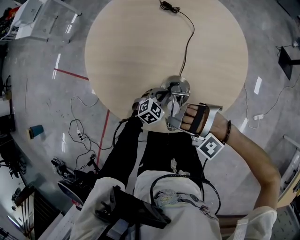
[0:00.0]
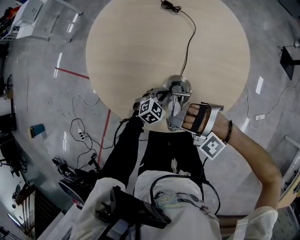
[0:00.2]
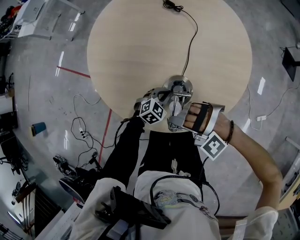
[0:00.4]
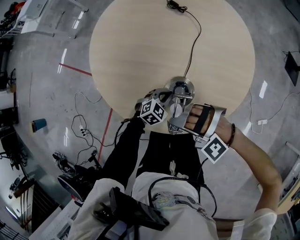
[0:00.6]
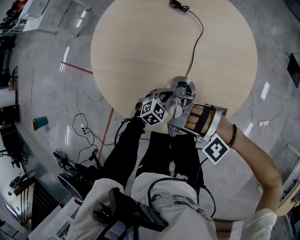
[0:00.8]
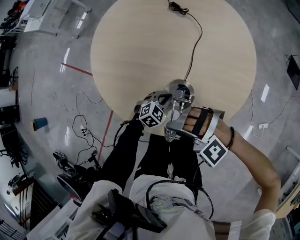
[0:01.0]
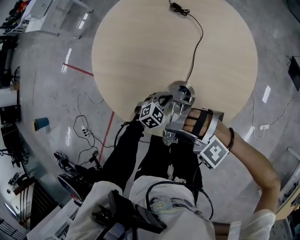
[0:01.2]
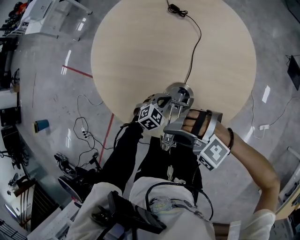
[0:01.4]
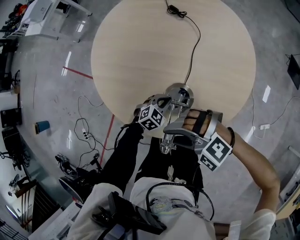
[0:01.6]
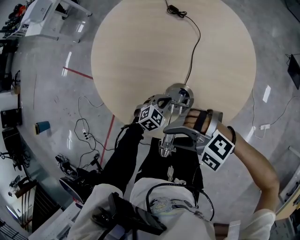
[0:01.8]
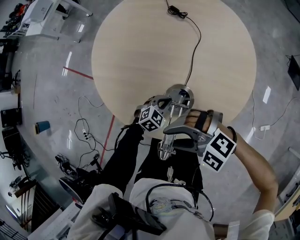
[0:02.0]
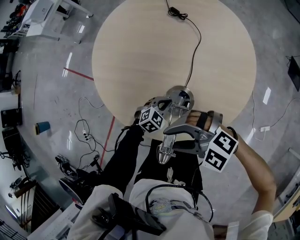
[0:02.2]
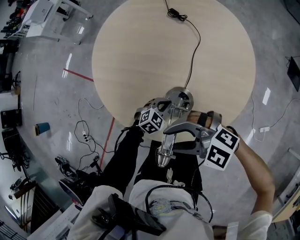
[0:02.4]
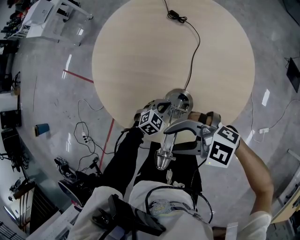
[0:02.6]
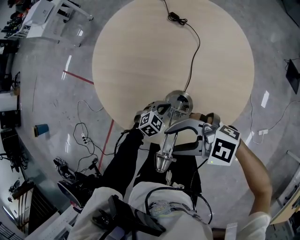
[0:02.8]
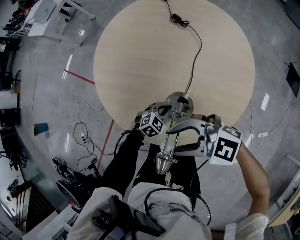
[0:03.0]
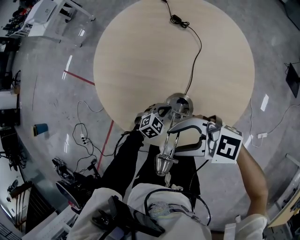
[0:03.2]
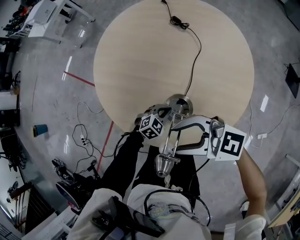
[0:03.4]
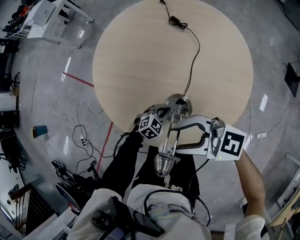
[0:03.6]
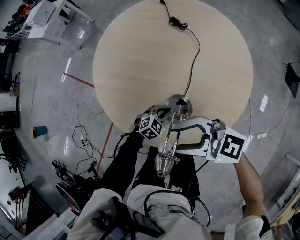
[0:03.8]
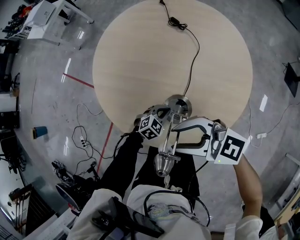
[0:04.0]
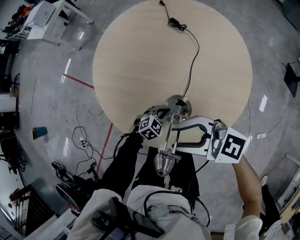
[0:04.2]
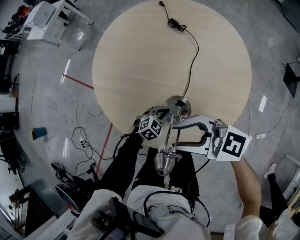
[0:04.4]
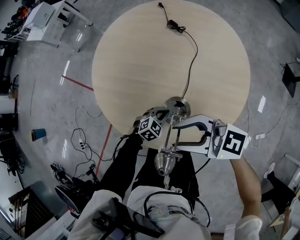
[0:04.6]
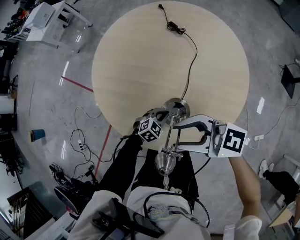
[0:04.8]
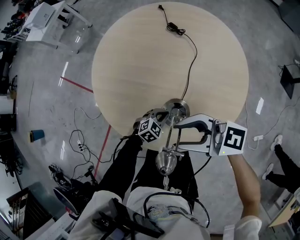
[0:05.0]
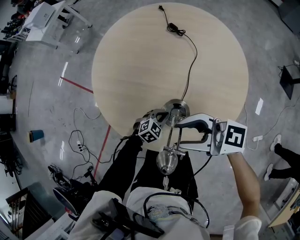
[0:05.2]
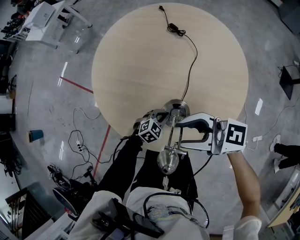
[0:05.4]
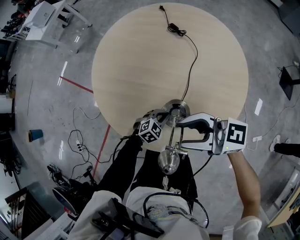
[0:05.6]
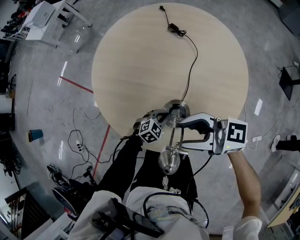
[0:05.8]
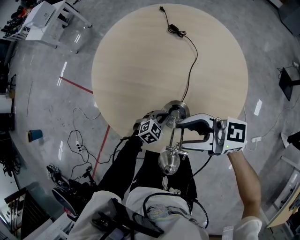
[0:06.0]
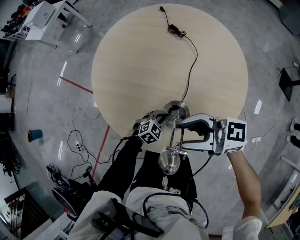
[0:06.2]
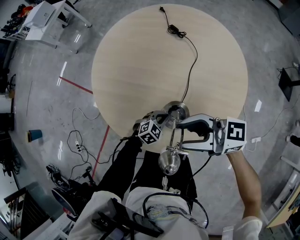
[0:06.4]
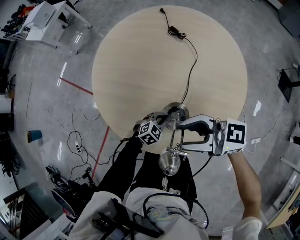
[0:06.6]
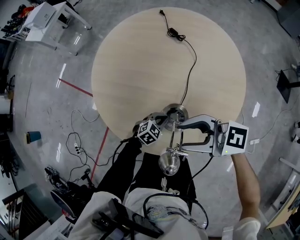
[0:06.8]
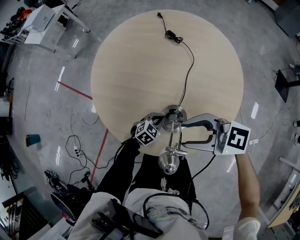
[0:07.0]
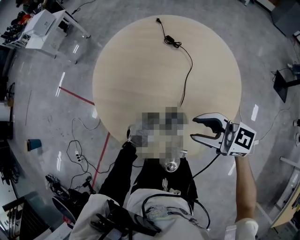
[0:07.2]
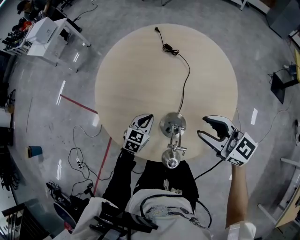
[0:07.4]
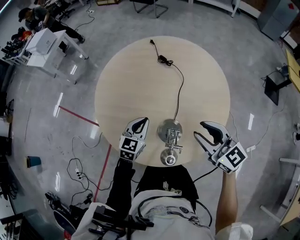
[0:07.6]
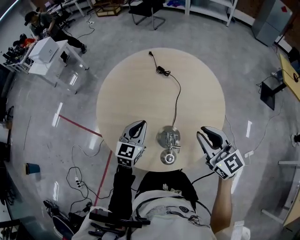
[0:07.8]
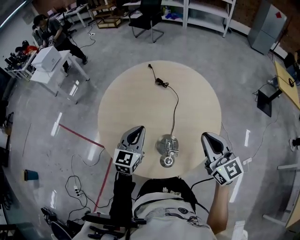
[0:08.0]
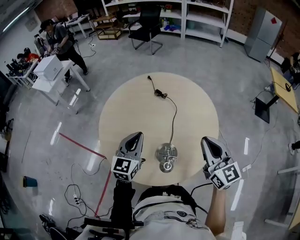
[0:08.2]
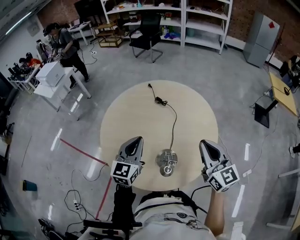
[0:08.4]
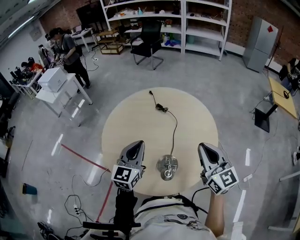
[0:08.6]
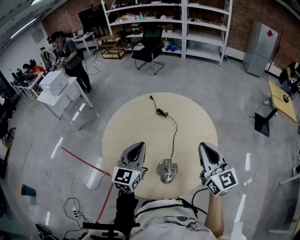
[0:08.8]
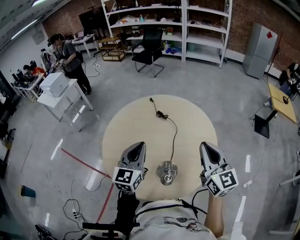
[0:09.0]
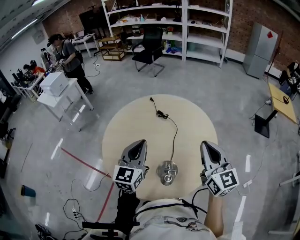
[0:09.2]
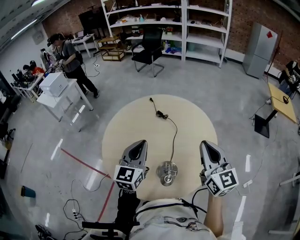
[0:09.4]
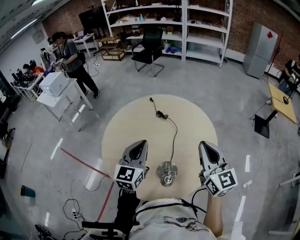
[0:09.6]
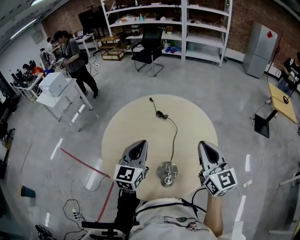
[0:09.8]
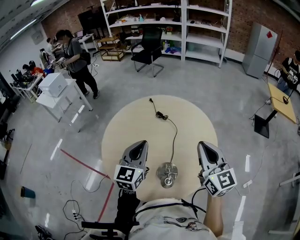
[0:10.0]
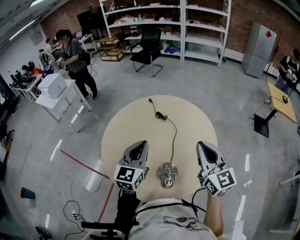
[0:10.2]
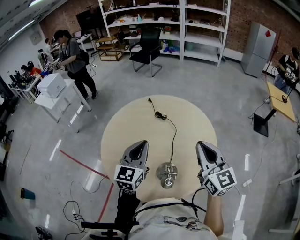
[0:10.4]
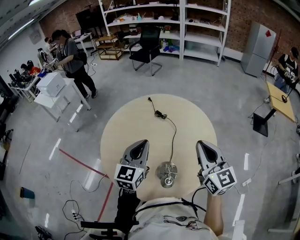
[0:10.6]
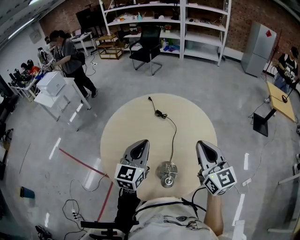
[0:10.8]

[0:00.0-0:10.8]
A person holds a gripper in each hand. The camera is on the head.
0:00.0 to 0:01.6: The right gripper heads upward, covering approximately 5 cm, and swivels some 40 degrees.
0:01.6 to 0:03.0: The right gripper moves upward, some 5 cm, and turns by about 40 degrees.
0:03.0 to 0:04.6: The right gripper swivels some 20 degrees.
0:04.6 to 0:06.2: The grippers make only small movements.
0:06.2 to 0:07.8: The left gripper shifts roughly 30 cm upward, and points its fingers approximately 30 degrees further upward; the right gripper shifts by approximately 10 cm, rotates roughly 60 degrees, and closes.
0:07.8 to 0:09.2: The left gripper heads upward, covering some 20 cm. Meanwhile the right gripper travels upward by about 10 cm, and rotates some 20 degrees.
0:09.2 to 0:10.8: There are only small adjustments of the grippers.

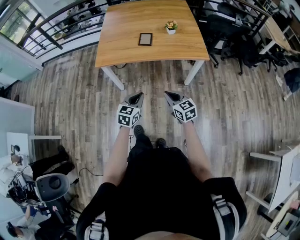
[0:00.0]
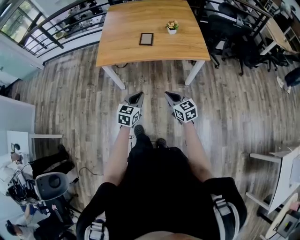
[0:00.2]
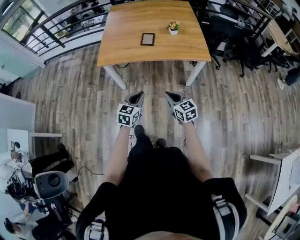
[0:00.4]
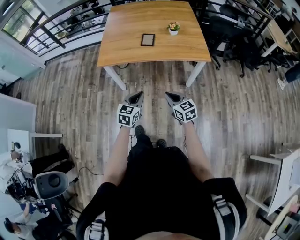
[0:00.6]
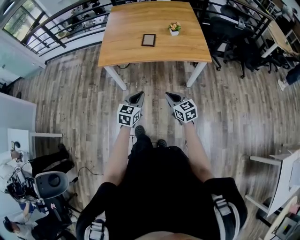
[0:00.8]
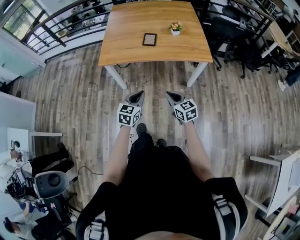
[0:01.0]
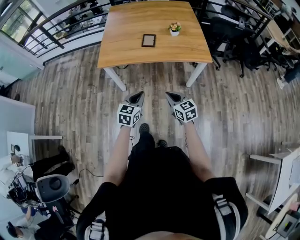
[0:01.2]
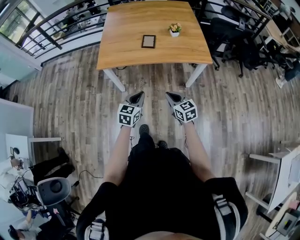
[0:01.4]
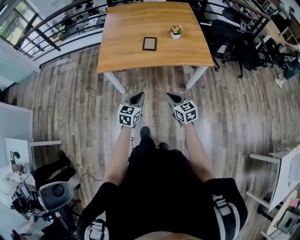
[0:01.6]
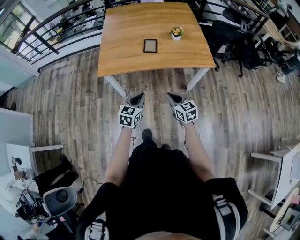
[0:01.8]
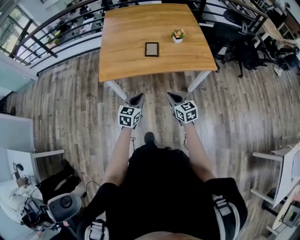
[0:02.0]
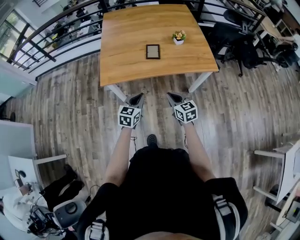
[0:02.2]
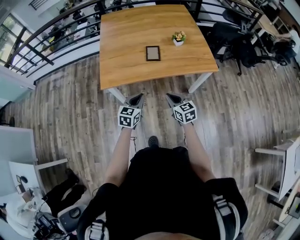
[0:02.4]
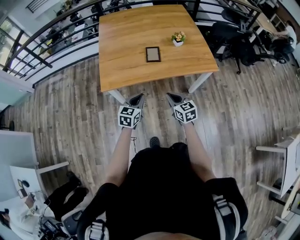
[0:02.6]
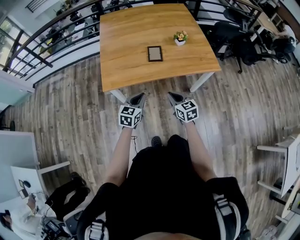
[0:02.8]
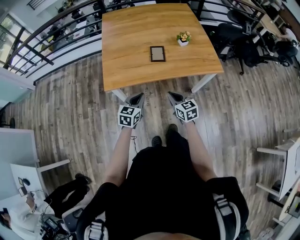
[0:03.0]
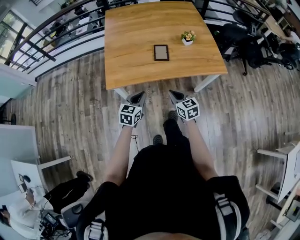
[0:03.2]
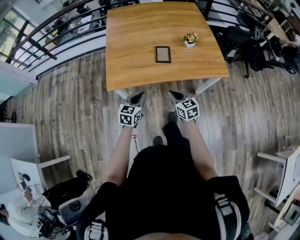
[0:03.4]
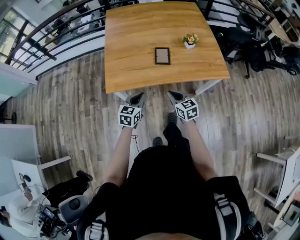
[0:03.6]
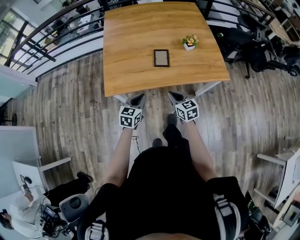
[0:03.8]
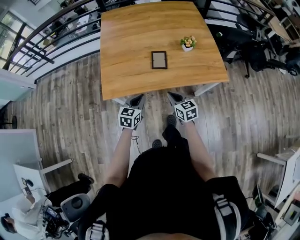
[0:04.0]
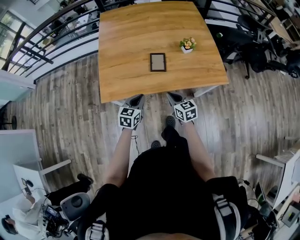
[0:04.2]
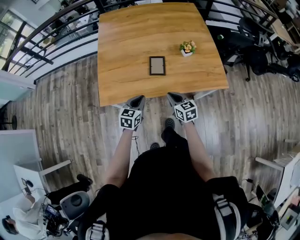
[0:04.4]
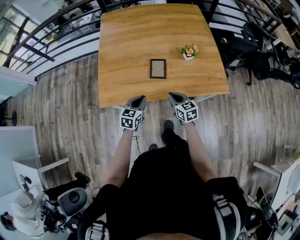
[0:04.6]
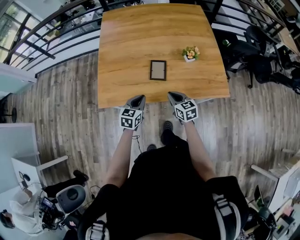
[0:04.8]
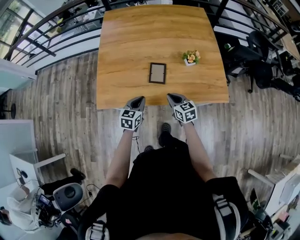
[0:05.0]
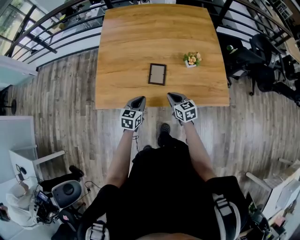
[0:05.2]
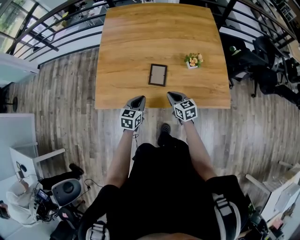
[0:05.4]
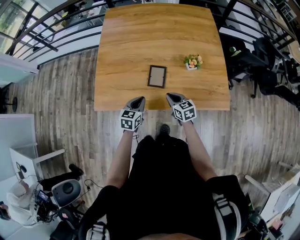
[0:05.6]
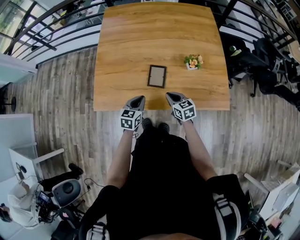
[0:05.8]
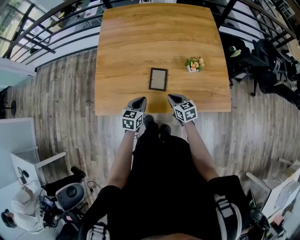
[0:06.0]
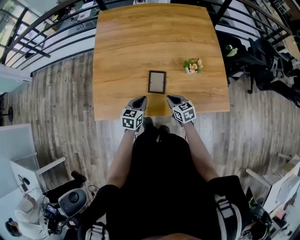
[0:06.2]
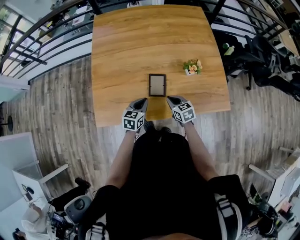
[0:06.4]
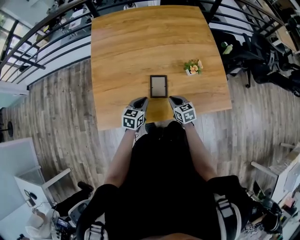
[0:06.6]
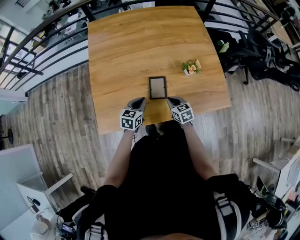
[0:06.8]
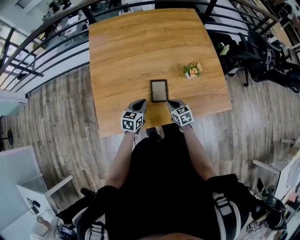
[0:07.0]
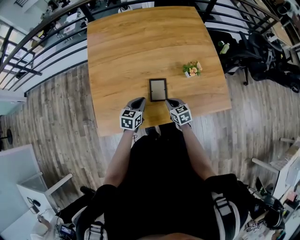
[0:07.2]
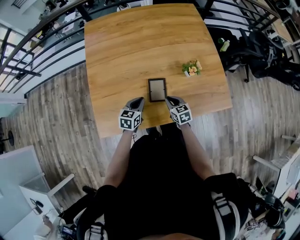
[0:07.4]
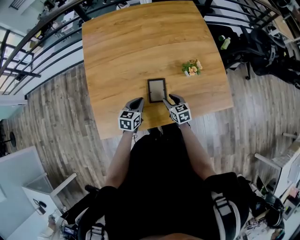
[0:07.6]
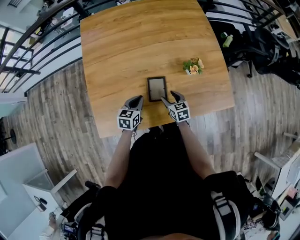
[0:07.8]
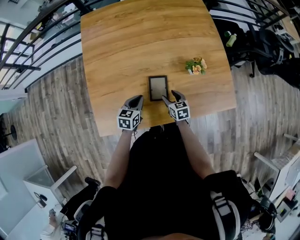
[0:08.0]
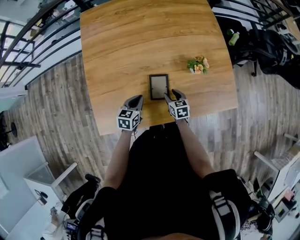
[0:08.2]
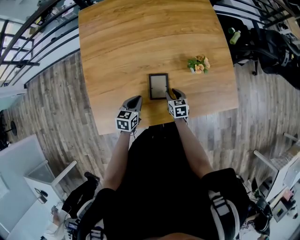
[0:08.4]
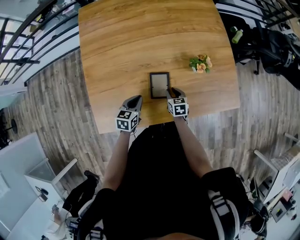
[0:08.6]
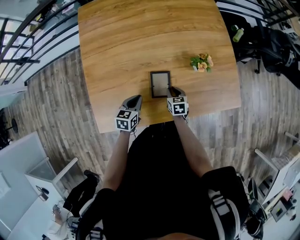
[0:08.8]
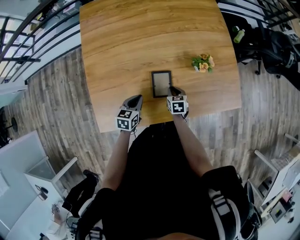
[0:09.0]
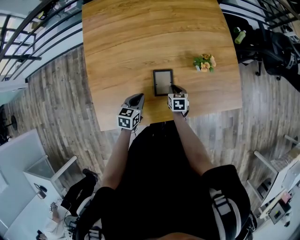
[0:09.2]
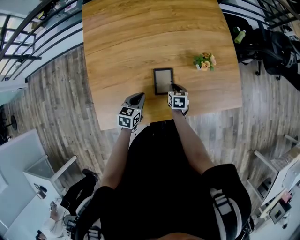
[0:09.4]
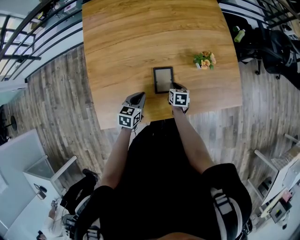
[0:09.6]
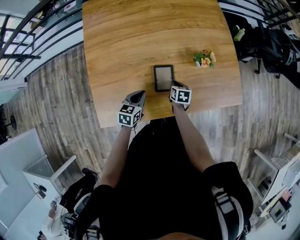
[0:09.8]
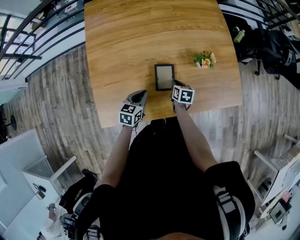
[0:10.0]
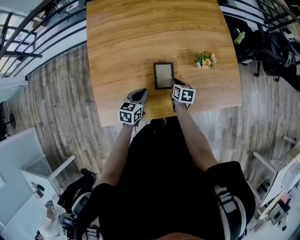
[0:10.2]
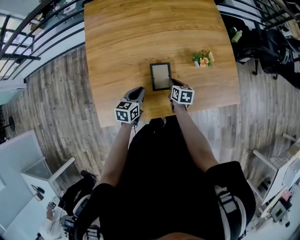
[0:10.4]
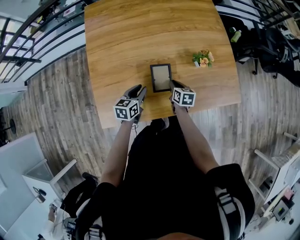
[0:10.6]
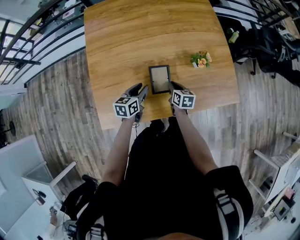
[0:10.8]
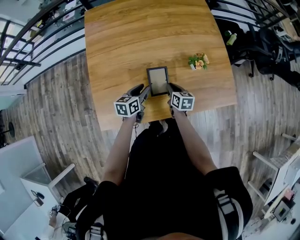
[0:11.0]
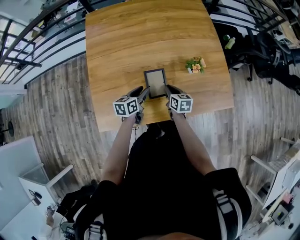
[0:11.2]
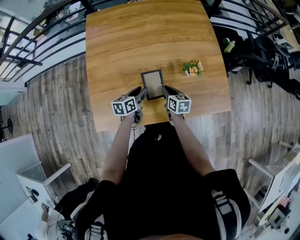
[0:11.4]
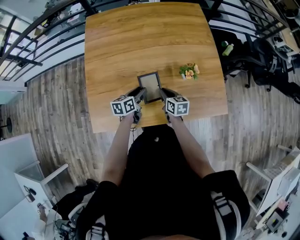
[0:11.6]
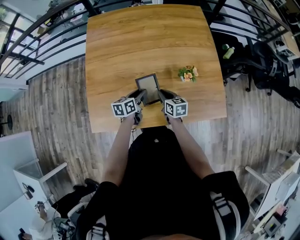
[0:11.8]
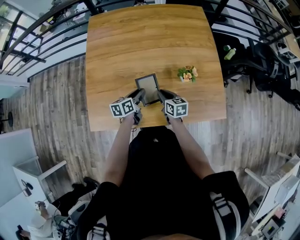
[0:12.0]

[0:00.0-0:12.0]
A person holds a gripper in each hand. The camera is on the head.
0:00.0 to 0:01.6: Both grippers move forward, approximately 5 cm.
0:01.6 to 0:03.0: Both grippers travel together forward and to the left, roughly 15 cm.
0:03.0 to 0:04.4: The grippers both shift forward by approximately 15 cm.
0:04.4 to 0:06.0: The two grippers go some 10 cm forward.
0:06.0 to 0:07.6: The right gripper heads forward and downward, covering about 10 cm, and opens up; the left gripper goes approximately 10 cm forward.
0:07.6 to 0:09.0: The right gripper moves downward, about 5 cm, and closes up.
0:09.0 to 0:10.4: The grippers stay close to where they were, moving slightly.
0:10.4 to 0:12.0: The right gripper heads upward, covering approximately 10 cm, and rotates roughly 20 degrees; the left gripper goes approximately 5 cm to the right, changes its angle by approximately 20 degrees, and opens its fingers.

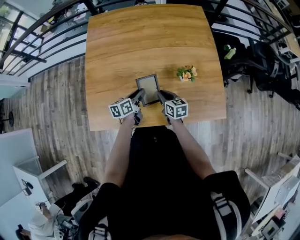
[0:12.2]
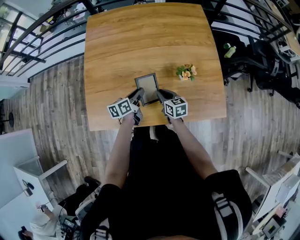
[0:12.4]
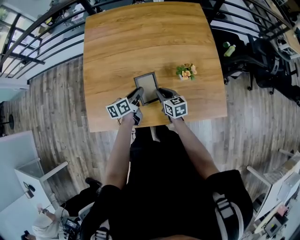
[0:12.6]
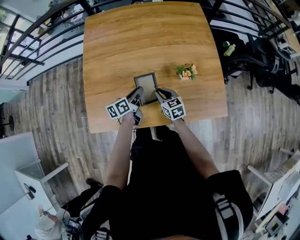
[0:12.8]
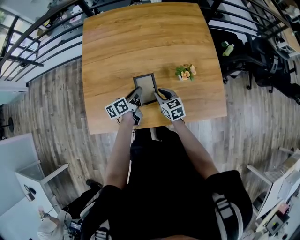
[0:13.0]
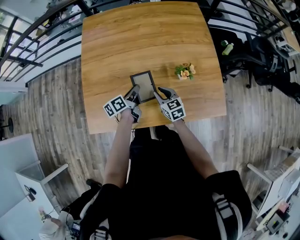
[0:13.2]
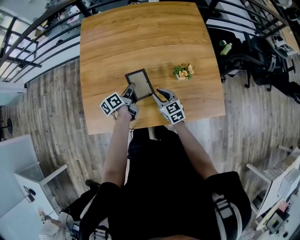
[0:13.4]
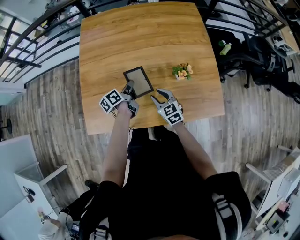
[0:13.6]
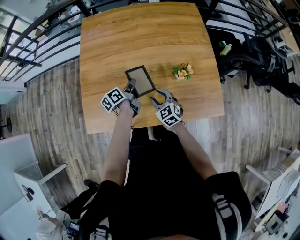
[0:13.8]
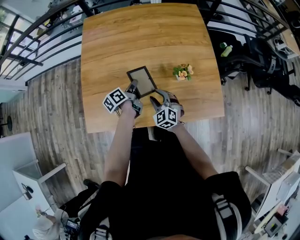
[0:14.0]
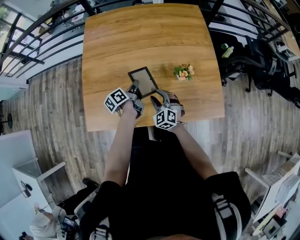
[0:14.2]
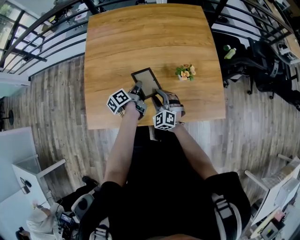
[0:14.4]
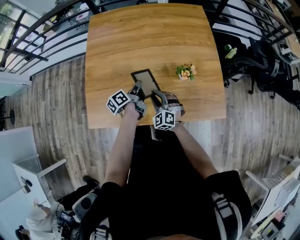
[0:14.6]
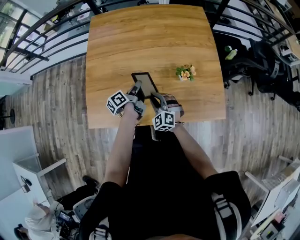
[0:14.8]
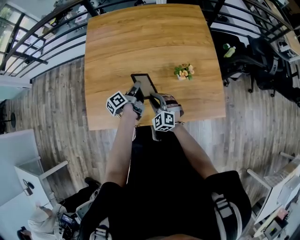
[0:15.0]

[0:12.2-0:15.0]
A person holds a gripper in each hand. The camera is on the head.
0:12.2 to 0:13.6: The right gripper changes its angle by roughly 30 degrees, and opens up; the left gripper is displaced forward by approximately 5 cm, and swivels roughly 20 degrees.
0:13.6 to 0:15.0: The right gripper swivels roughly 40 degrees.
